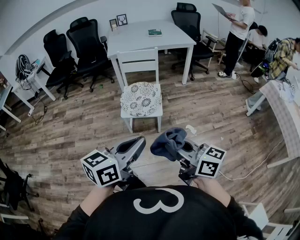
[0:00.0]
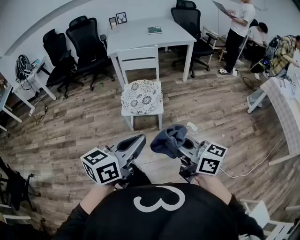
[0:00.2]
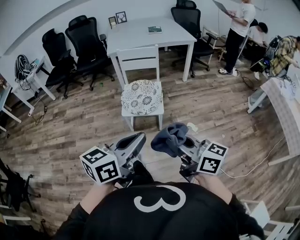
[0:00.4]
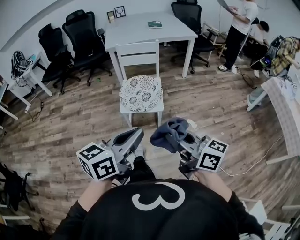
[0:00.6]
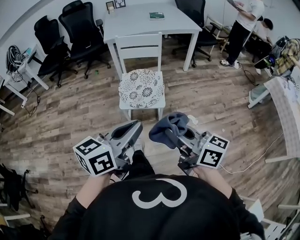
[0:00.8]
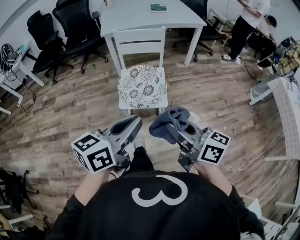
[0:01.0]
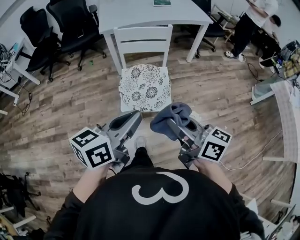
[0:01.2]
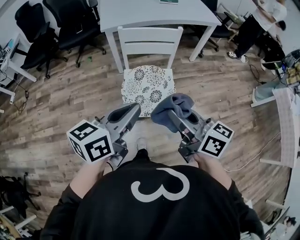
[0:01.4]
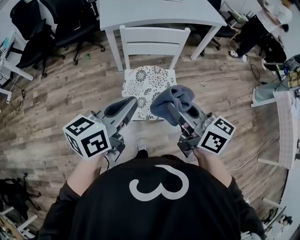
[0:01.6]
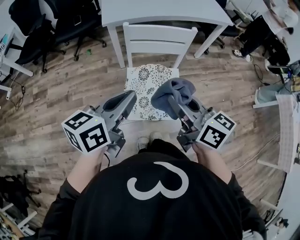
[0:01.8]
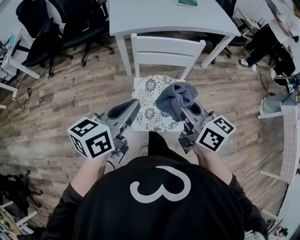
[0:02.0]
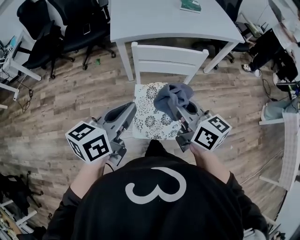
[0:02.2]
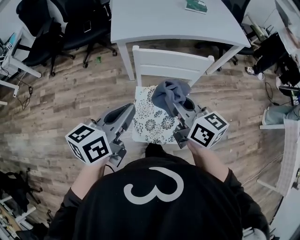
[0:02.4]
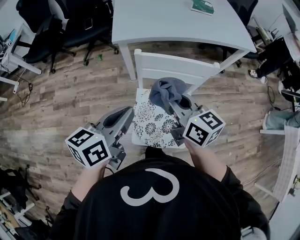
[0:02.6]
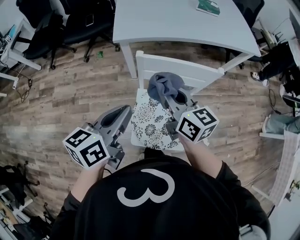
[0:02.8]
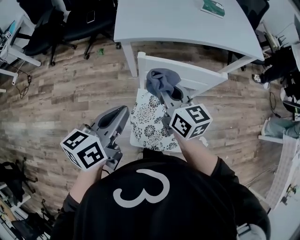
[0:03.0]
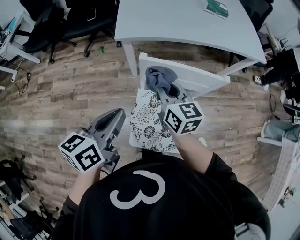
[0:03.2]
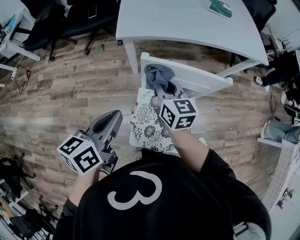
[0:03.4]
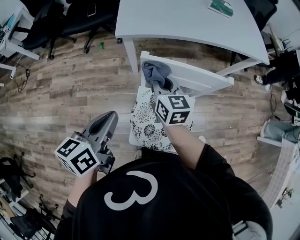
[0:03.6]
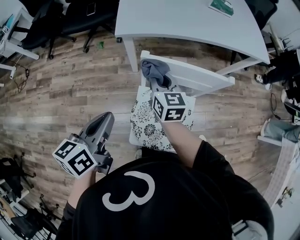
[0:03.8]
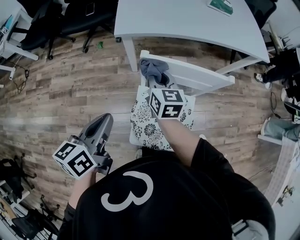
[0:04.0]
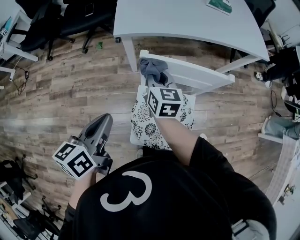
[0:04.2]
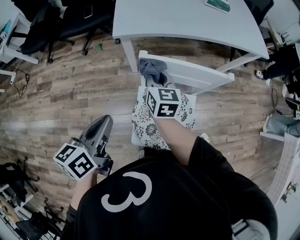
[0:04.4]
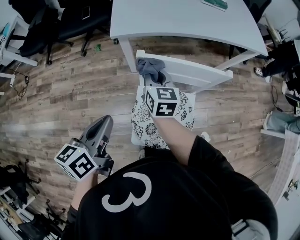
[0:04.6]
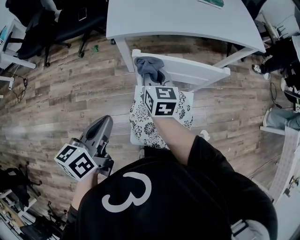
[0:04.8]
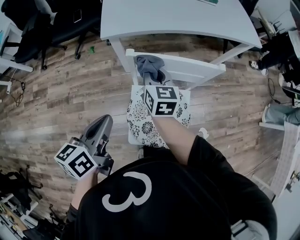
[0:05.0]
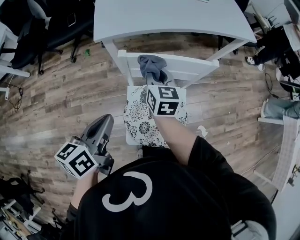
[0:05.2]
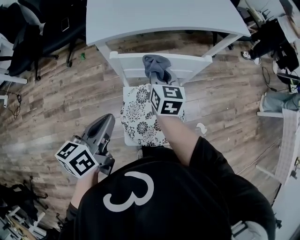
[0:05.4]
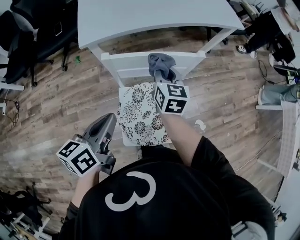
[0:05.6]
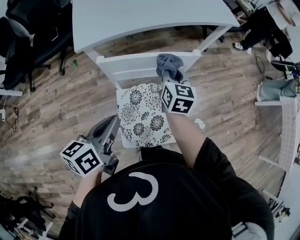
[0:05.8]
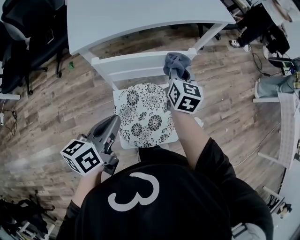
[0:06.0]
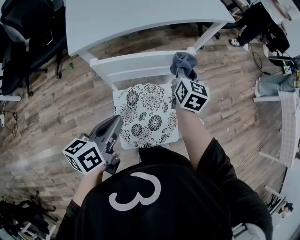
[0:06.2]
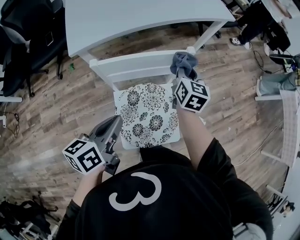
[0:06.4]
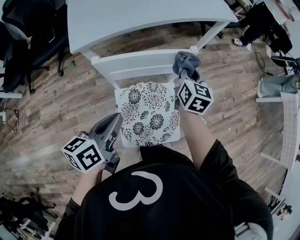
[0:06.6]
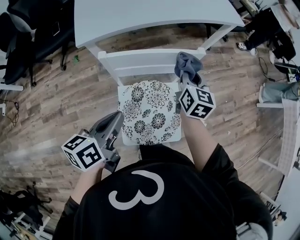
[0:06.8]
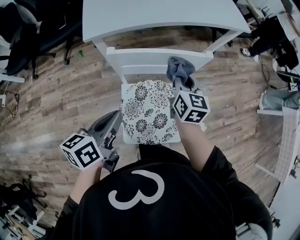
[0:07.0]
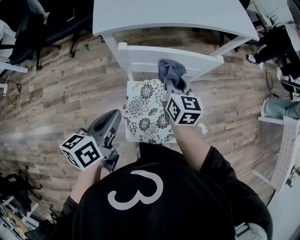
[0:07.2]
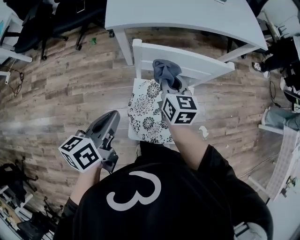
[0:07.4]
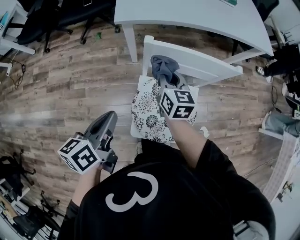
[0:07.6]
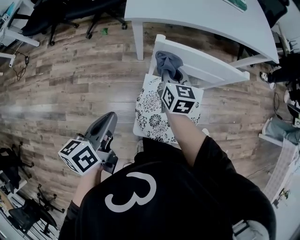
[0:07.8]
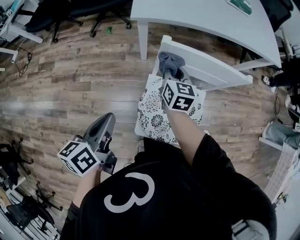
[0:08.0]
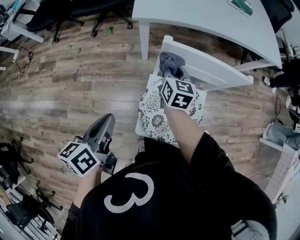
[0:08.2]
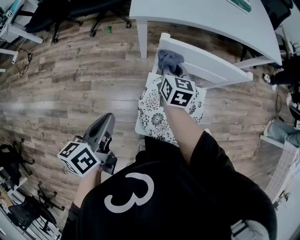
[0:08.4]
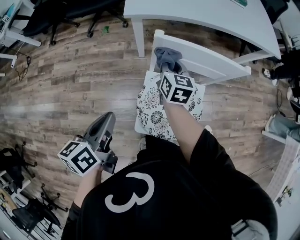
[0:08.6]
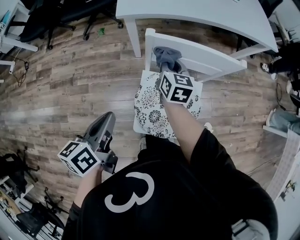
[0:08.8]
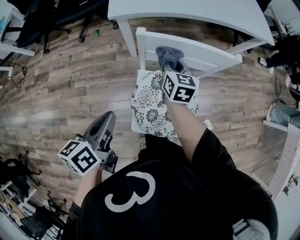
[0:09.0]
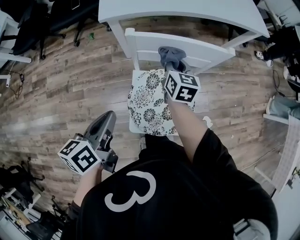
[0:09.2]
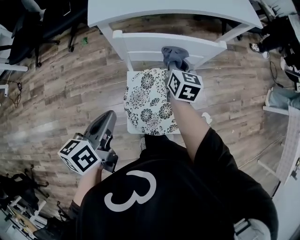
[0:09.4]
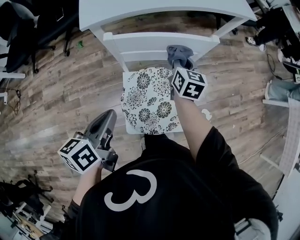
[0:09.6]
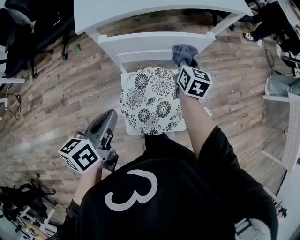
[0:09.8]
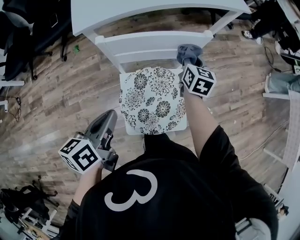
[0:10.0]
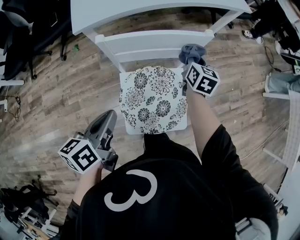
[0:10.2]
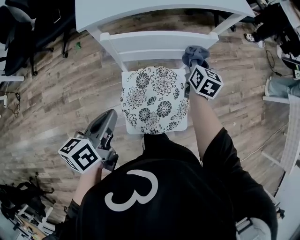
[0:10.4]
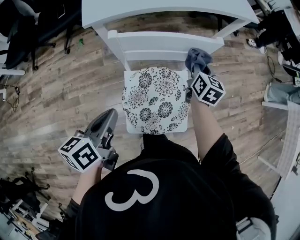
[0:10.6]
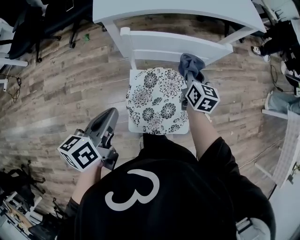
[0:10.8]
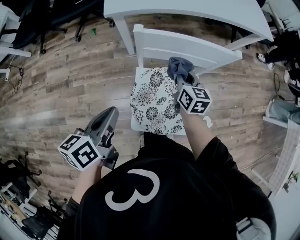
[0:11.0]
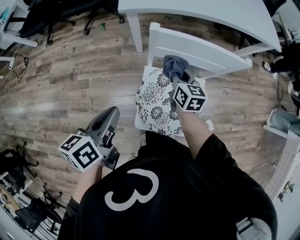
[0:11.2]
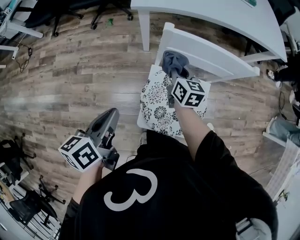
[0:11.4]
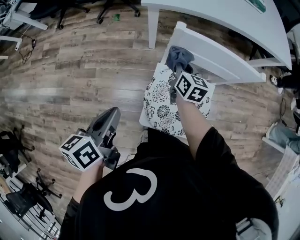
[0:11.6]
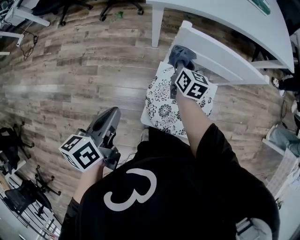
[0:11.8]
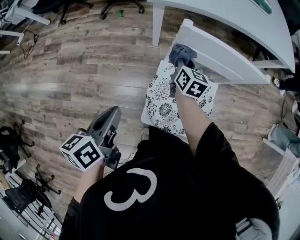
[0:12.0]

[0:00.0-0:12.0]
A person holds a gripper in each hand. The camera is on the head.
0:00.0 to 0:01.6: The two grippers travel together, forward, approximately 50 cm.
0:01.6 to 0:03.0: The two grippers go roughly 25 cm forward.
0:03.0 to 0:04.4: The left gripper travels to the left by roughly 5 cm. Meanwhile the right gripper travels downward and forward by approximately 10 cm.
0:04.4 to 0:06.0: The right gripper is displaced to the right by approximately 25 cm, and turns by roughly 30 degrees. Meanwhile the left gripper travels to the right by roughly 10 cm.
0:06.0 to 0:07.6: The right gripper ends up about 20 cm from where it was, and rotates roughly 30 degrees; the left gripper shifts by roughly 15 cm, and rotates approximately 20 degrees.
0:07.6 to 0:09.0: The right gripper moves some 5 cm.
0:09.0 to 0:10.4: The left gripper heads to the right, covering approximately 5 cm; the right gripper shifts about 20 cm to the right, and rotates about 20 degrees.
0:10.4 to 0:12.0: The right gripper ends up roughly 30 cm from where it was, and turns by about 30 degrees. Meanwhile the left gripper changes place by roughly 15 cm, and changes its angle by approximately 20 degrees.

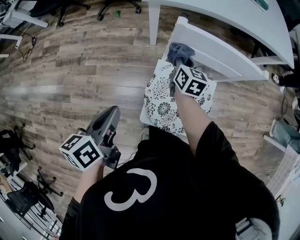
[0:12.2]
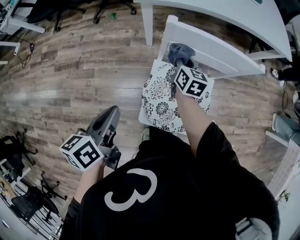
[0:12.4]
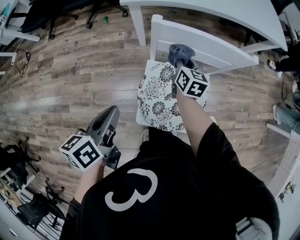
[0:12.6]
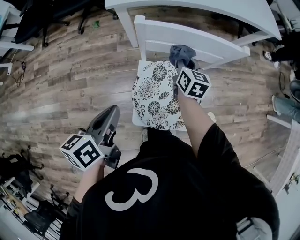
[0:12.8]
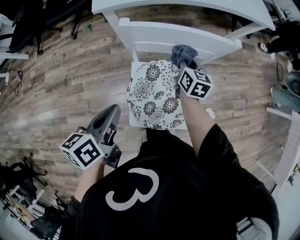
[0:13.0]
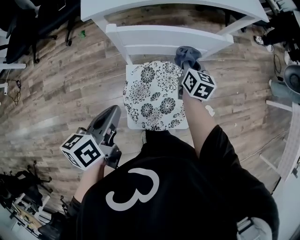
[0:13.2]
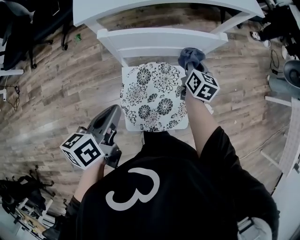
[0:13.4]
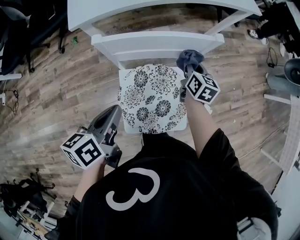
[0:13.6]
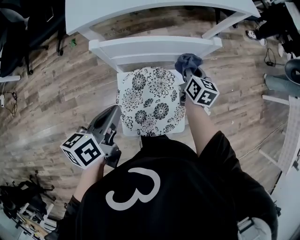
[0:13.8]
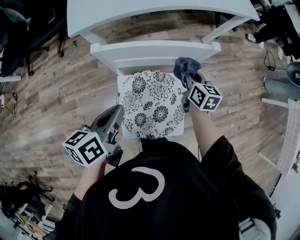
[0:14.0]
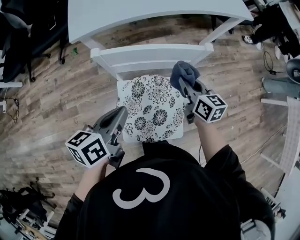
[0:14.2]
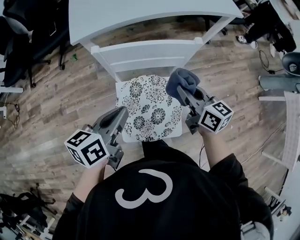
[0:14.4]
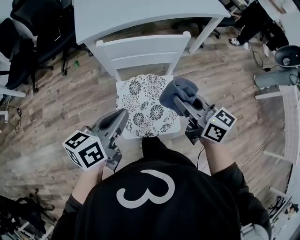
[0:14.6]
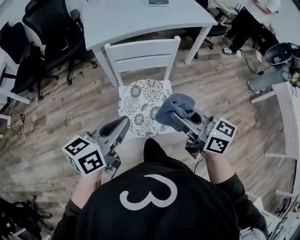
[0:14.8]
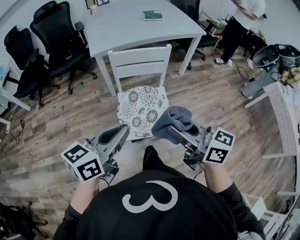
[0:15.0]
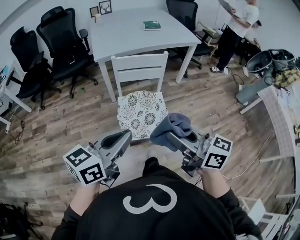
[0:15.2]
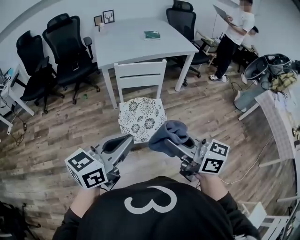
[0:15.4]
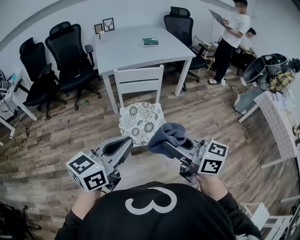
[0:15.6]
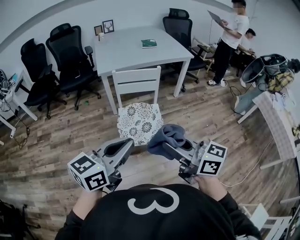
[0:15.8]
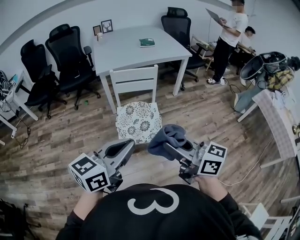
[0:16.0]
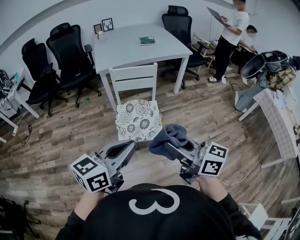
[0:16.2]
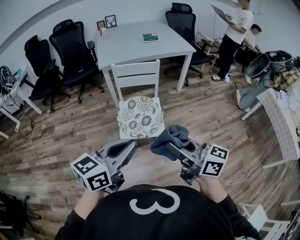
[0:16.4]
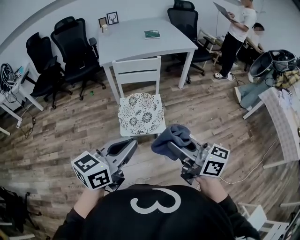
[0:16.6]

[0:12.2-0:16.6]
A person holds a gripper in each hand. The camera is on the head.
0:12.2 to 0:13.6: The right gripper is displaced to the right by roughly 25 cm, and changes its angle by roughly 20 degrees; the left gripper shifts about 15 cm to the right and forward, and turns by about 20 degrees.
0:13.6 to 0:15.2: The right gripper travels backward and upward by some 60 cm, and swivels about 50 degrees, while the left gripper moves backward and upward, roughly 40 cm, and rotates approximately 40 degrees.
0:15.2 to 0:16.6: Both grippers travel together backward and to the right, approximately 15 cm.

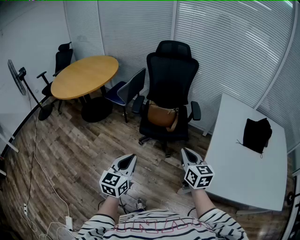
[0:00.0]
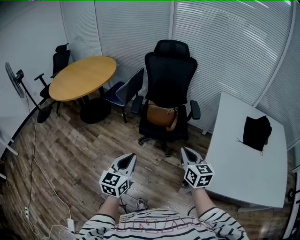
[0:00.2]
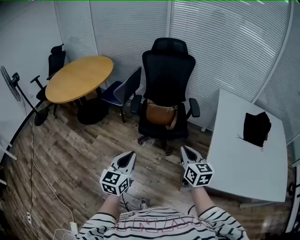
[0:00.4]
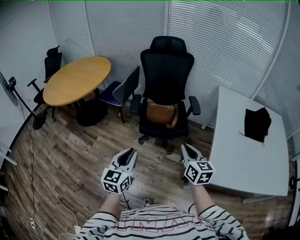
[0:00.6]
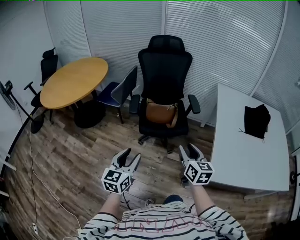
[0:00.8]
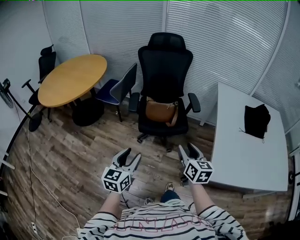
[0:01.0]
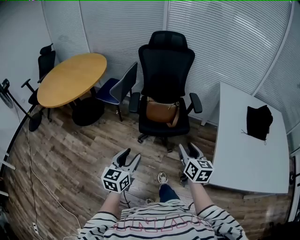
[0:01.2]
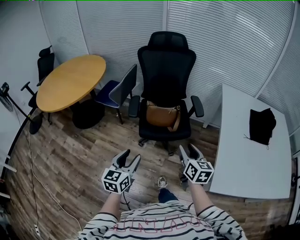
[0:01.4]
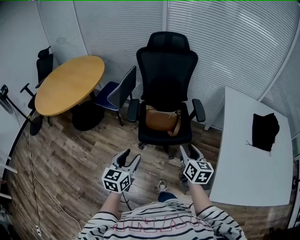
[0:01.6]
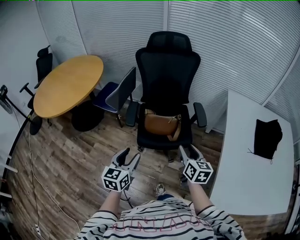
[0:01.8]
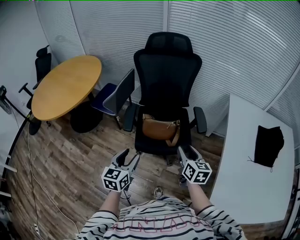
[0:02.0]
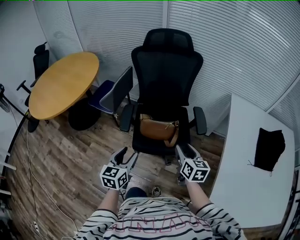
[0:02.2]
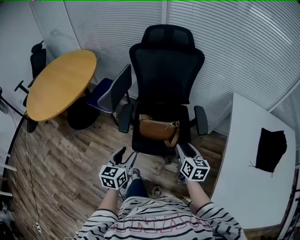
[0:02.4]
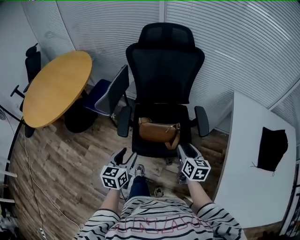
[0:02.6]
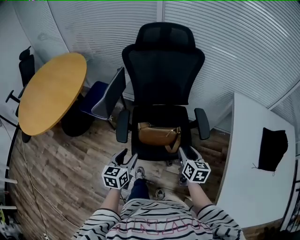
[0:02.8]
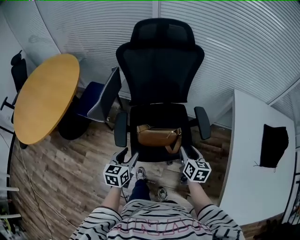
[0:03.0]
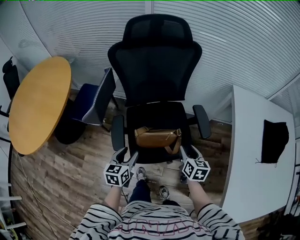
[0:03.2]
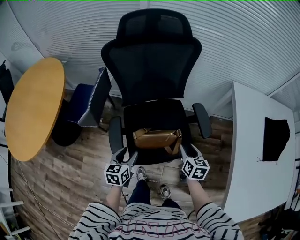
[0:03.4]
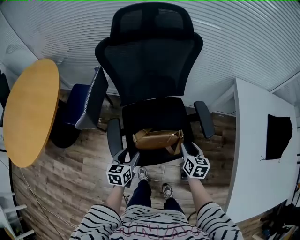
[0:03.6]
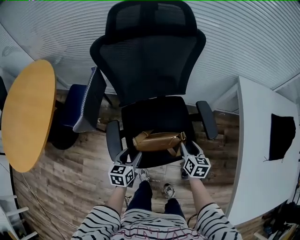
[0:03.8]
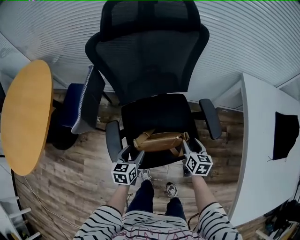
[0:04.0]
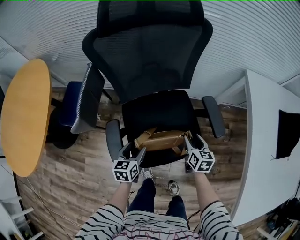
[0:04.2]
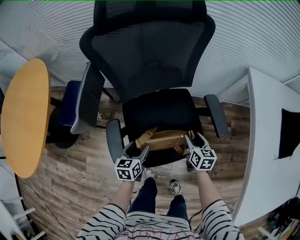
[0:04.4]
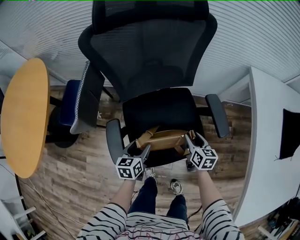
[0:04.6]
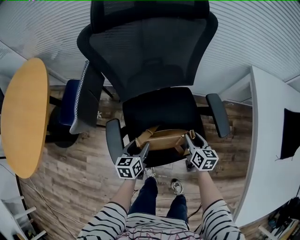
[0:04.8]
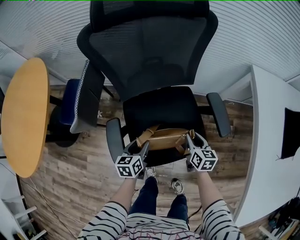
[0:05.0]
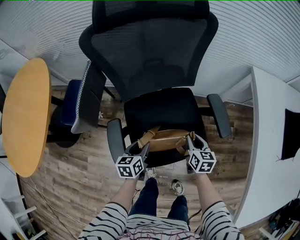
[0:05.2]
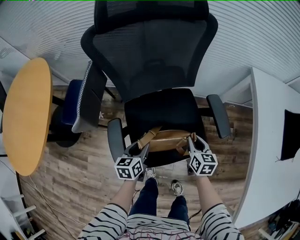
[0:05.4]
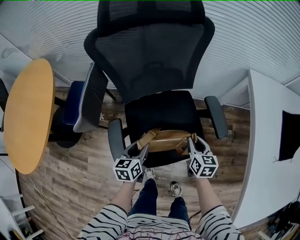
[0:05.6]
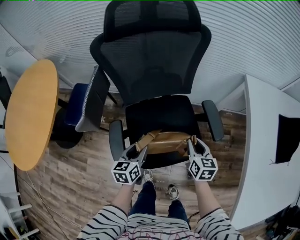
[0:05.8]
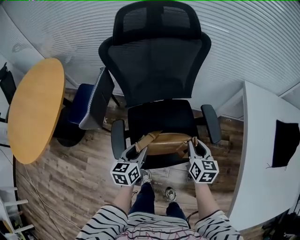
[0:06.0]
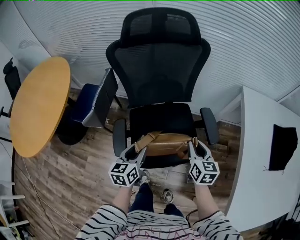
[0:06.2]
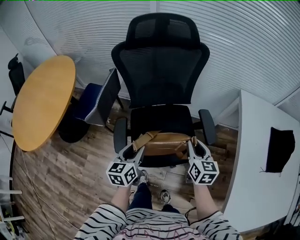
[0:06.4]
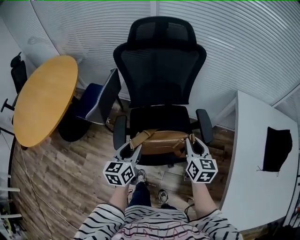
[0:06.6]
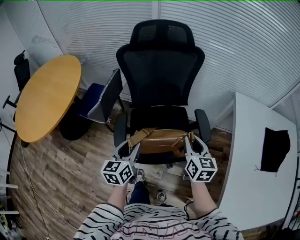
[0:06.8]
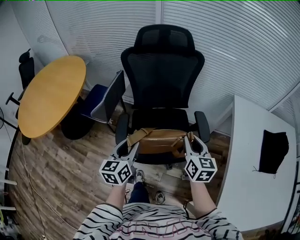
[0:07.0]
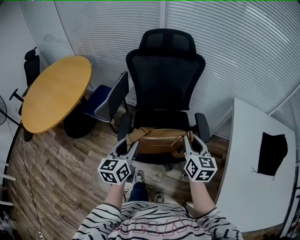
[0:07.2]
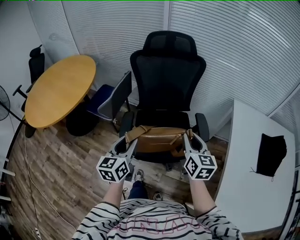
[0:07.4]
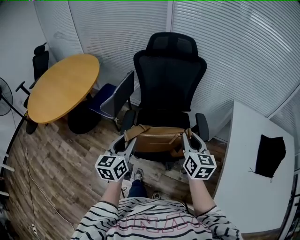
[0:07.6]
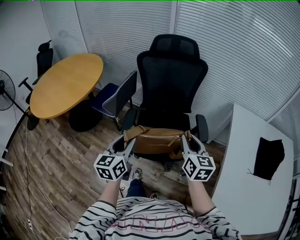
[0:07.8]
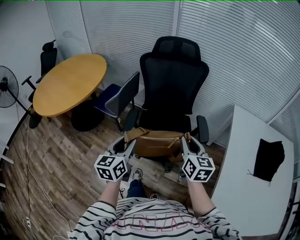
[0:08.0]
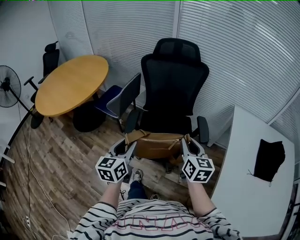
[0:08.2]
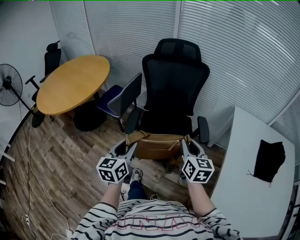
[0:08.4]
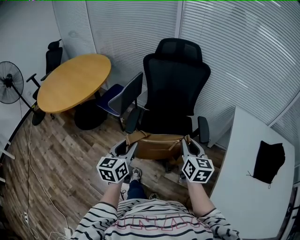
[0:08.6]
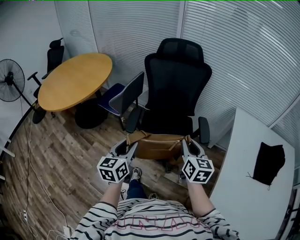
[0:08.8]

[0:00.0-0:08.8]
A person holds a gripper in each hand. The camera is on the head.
0:00.0 to 0:01.4: The right gripper shifts some 15 cm forward, downward and to the left, and opens its fingers; the left gripper moves forward, to the left and downward, approximately 15 cm, and opens.
0:01.4 to 0:03.0: The right gripper heads forward and downward, covering some 35 cm. The left gripper moves forward, approximately 35 cm.
0:03.0 to 0:04.4: The grippers both shift downward and forward by about 20 cm.
0:04.4 to 0:05.8: Both grippers travel together upward, roughly 10 cm. The left gripper closes its fingers, while the right gripper closes.
0:05.8 to 0:07.4: The grippers both shift upward and backward by about 30 cm. The left gripper turns by approximately 30 degrees; the right gripper turns by some 20 degrees.
0:07.4 to 0:08.8: Both grippers travel together backward, some 10 cm.
